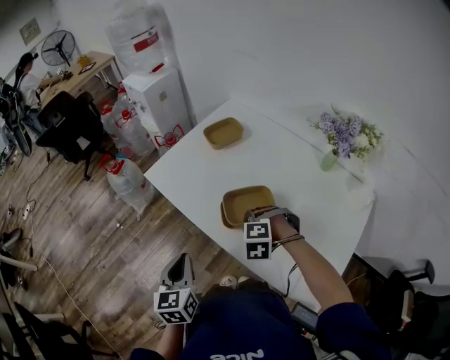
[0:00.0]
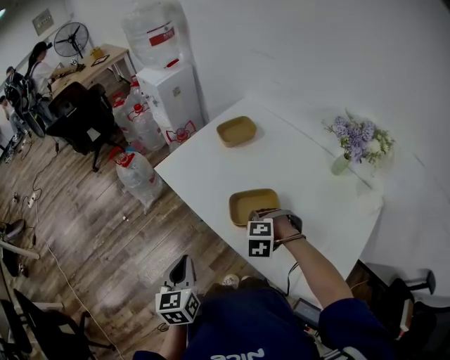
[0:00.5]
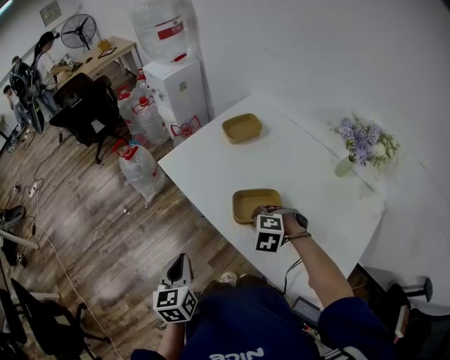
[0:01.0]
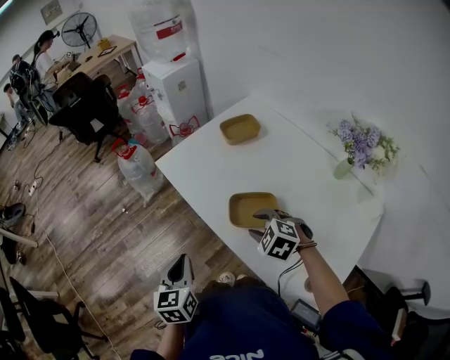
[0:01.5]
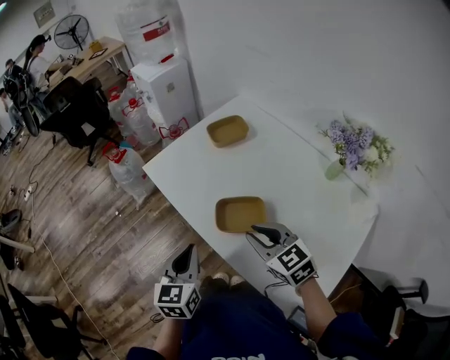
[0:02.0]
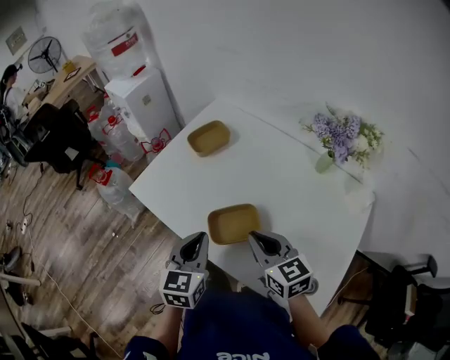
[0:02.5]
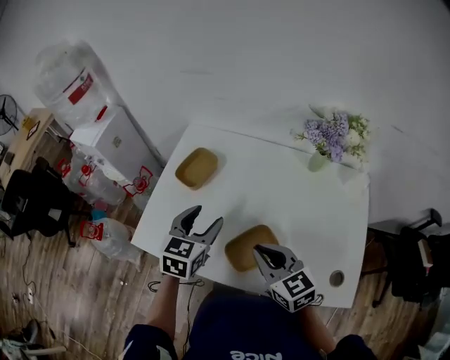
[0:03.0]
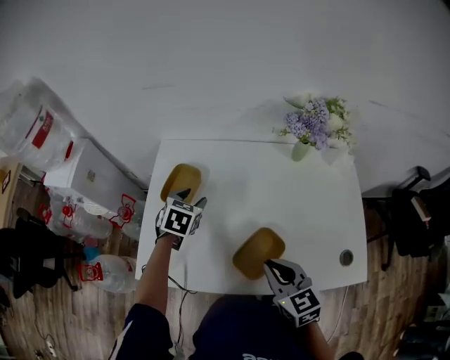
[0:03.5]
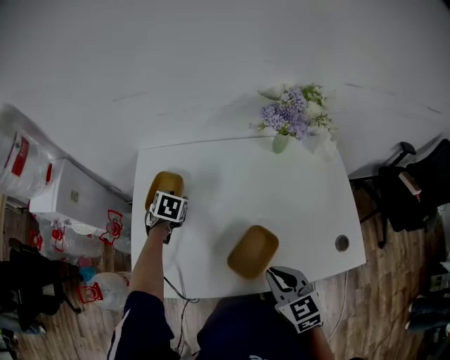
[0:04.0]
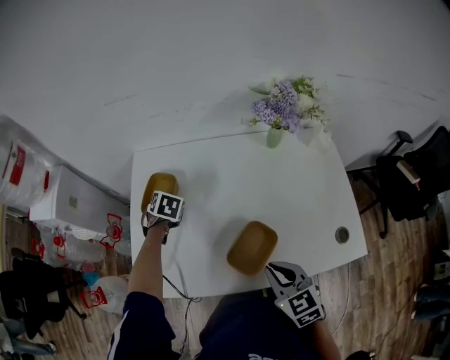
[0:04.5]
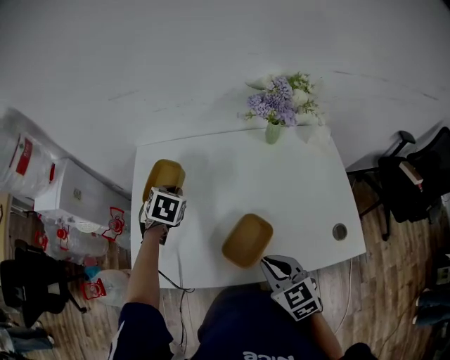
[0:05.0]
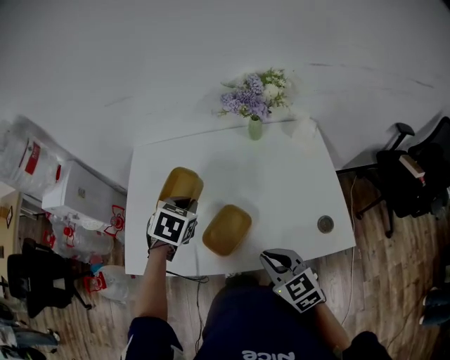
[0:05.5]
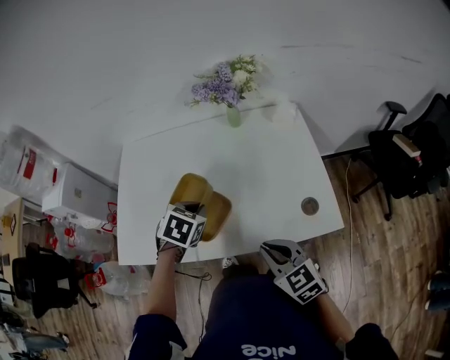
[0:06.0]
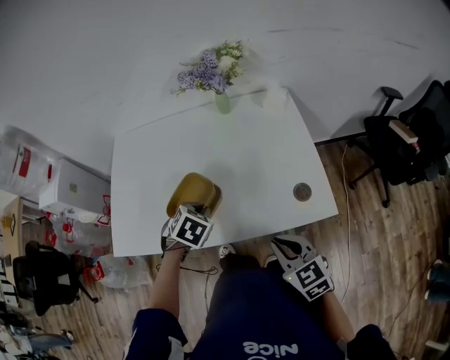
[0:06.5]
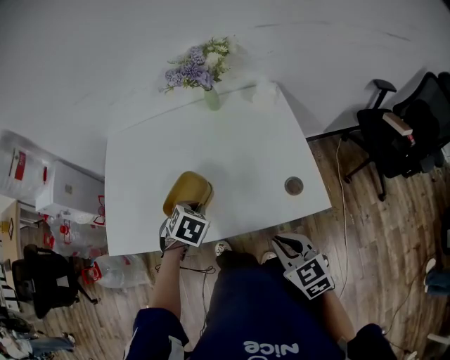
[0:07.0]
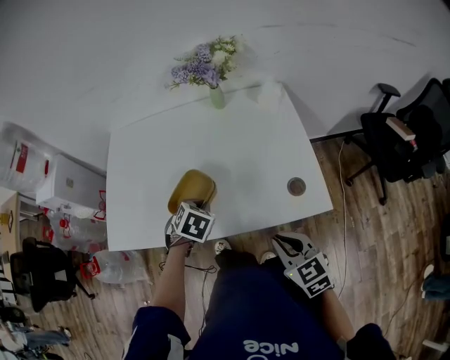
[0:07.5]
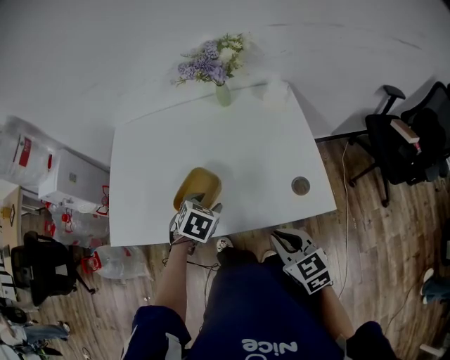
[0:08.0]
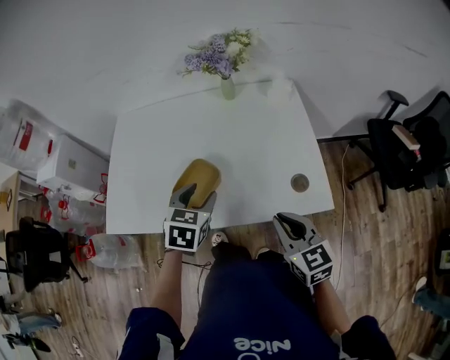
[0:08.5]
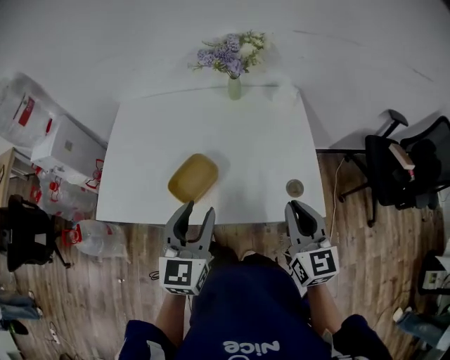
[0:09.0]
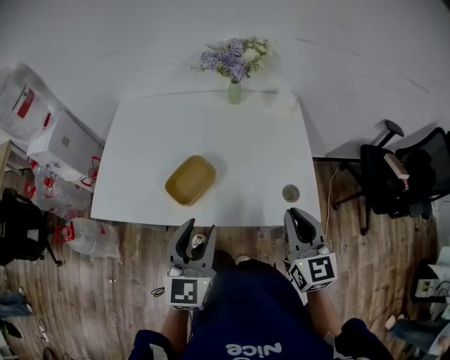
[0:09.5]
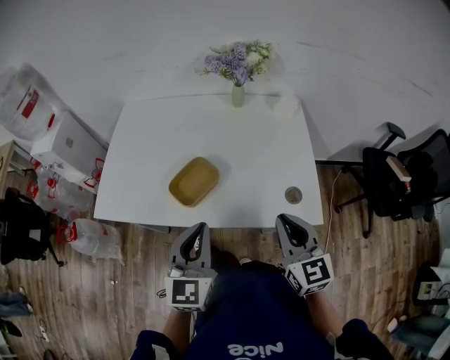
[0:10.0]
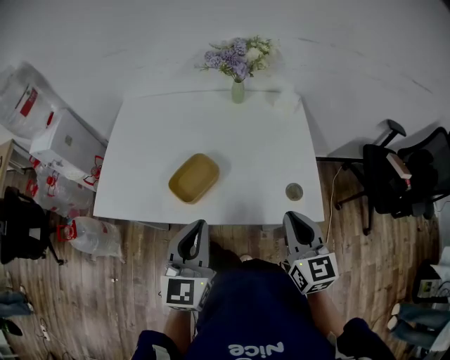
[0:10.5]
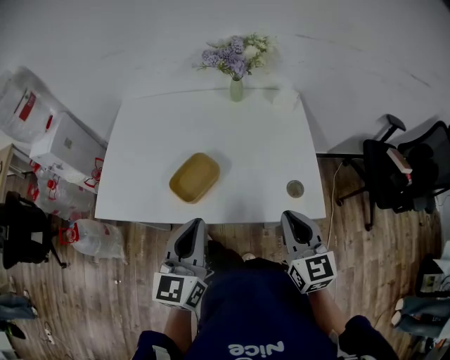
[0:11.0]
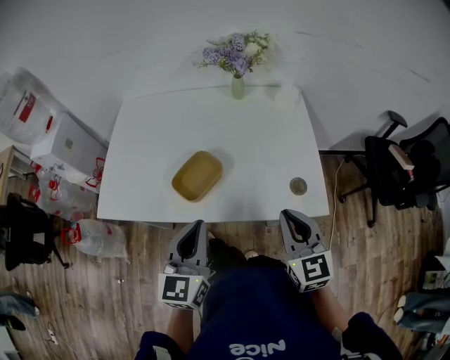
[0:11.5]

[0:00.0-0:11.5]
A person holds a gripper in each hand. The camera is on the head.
0:00.0 to 0:02.0: The right gripper goes approximately 10 cm upward, and angles its fingers upward, by roughly 40 degrees. The left gripper goes some 5 cm to the right.
0:02.0 to 0:04.0: The left gripper changes place by approximately 50 cm, angles its fingers downward, by about 40 degrees, and opens its fingers. The right gripper moves about 5 cm, and rotates roughly 60 degrees.
0:04.0 to 0:06.0: The left gripper moves backward and to the right, some 35 cm, and closes up. Meanwhile the right gripper shifts approximately 20 cm to the right and backward.
0:06.0 to 0:07.5: The right gripper goes about 10 cm to the right and backward, while the left gripper goes roughly 5 cm downward.
0:07.5 to 0:09.5: The left gripper moves upward and backward, about 20 cm, points its fingers approximately 50 degrees further upward, and opens its fingers. The right gripper moves upward and to the right, about 10 cm, and rotates some 30 degrees.
0:09.5 to 0:11.5: The left gripper closes up.

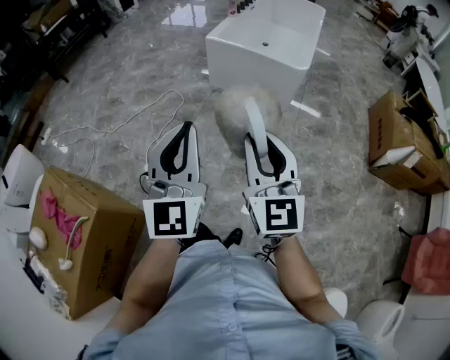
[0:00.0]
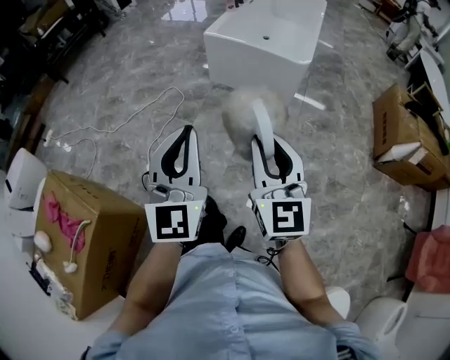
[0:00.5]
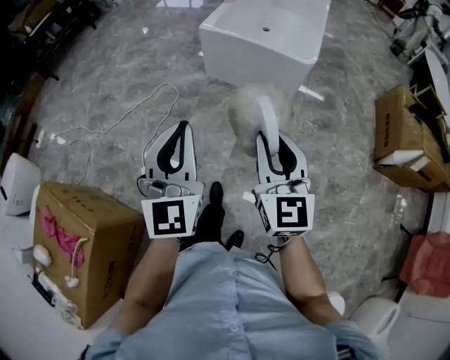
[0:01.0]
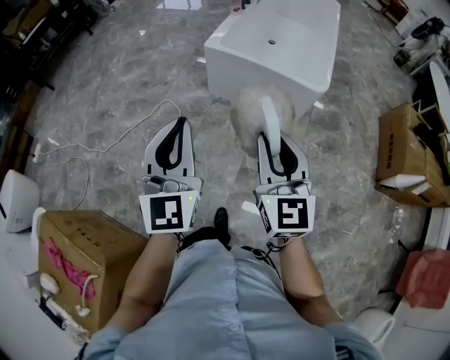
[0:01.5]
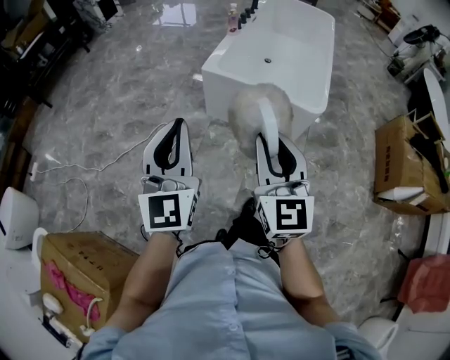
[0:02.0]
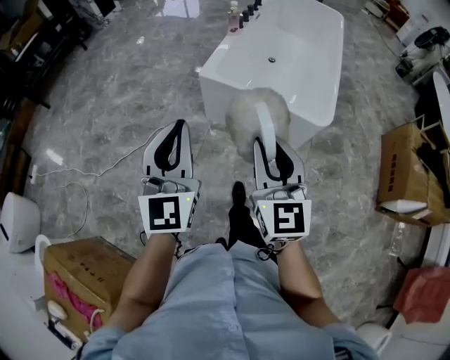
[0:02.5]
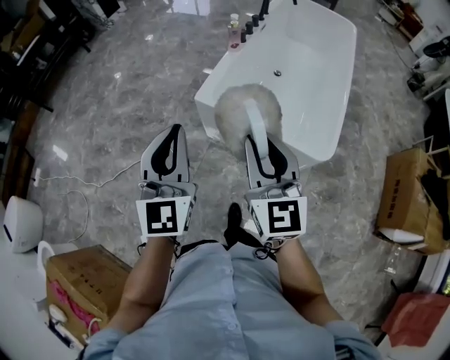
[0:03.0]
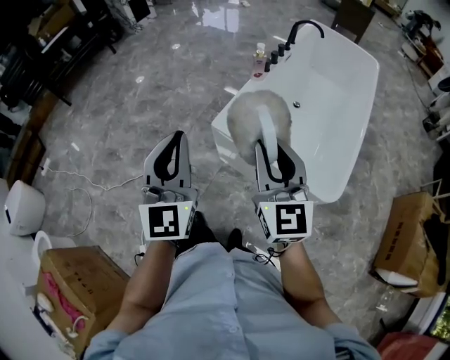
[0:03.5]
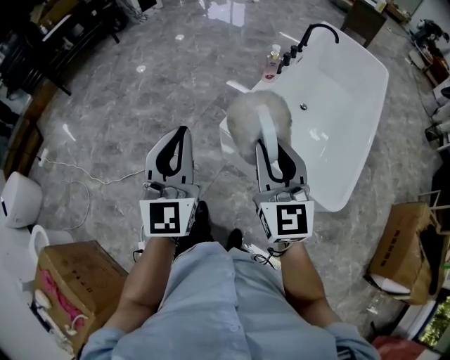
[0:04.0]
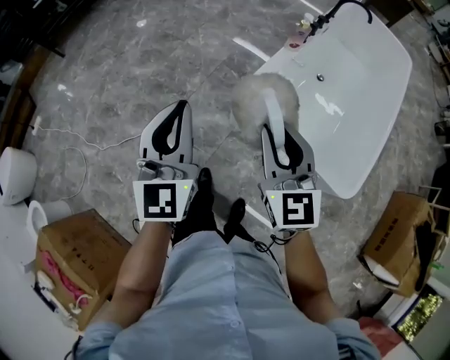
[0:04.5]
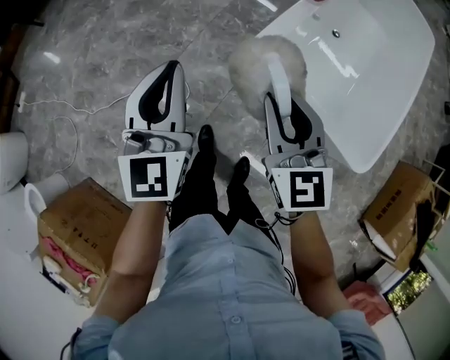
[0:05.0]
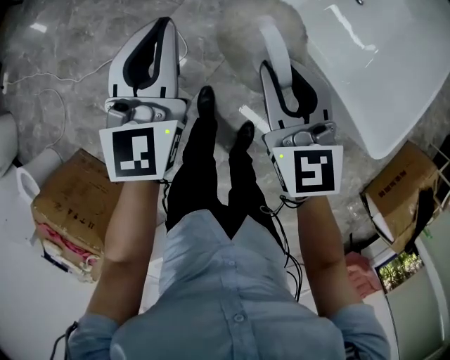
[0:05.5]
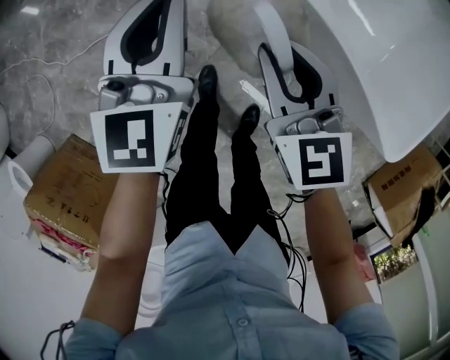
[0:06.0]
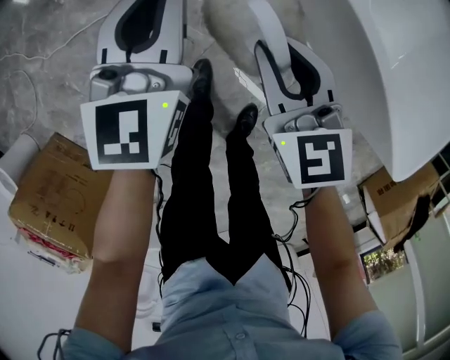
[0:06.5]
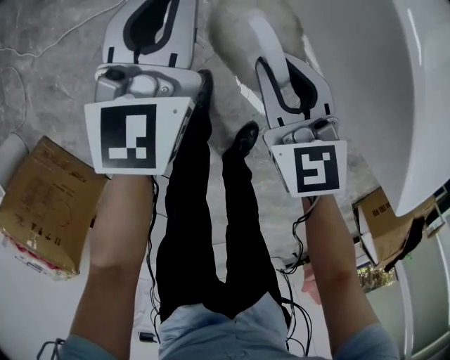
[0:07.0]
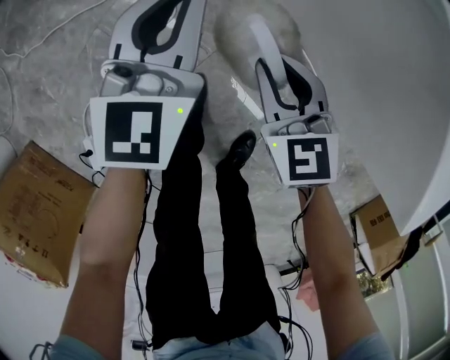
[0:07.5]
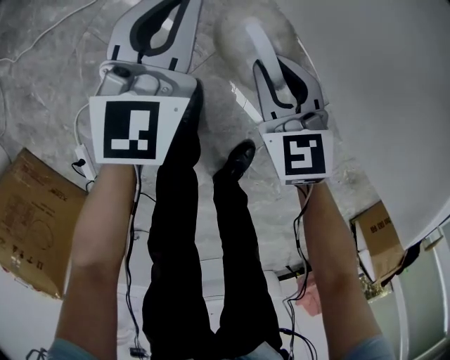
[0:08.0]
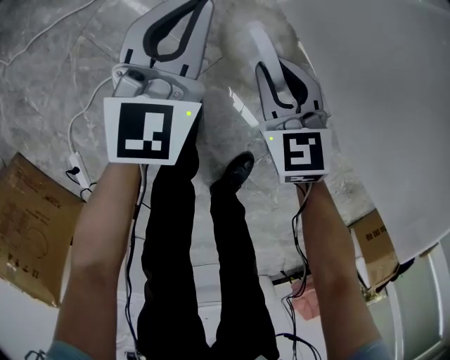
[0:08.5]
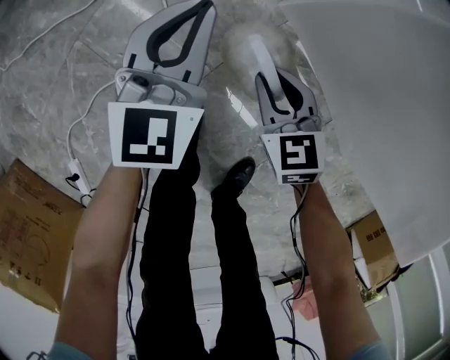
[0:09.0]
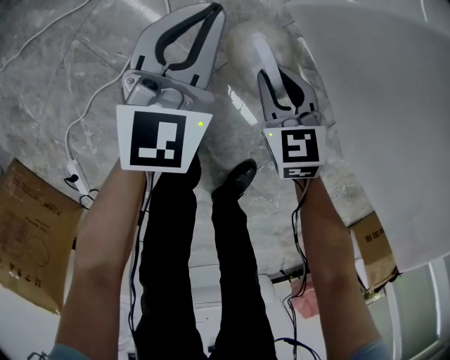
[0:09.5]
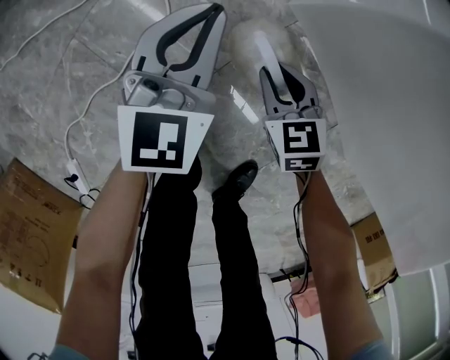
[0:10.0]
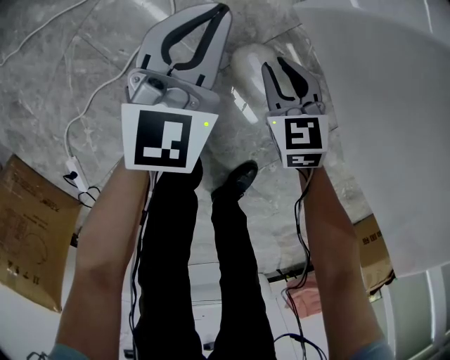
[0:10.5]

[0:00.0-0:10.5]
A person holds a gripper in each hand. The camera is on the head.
0:00.0 to 0:02.0: The pair of grippers is taken forward, some 40 cm.
0:02.0 to 0:04.0: The two grippers go about 40 cm forward.
0:04.0 to 0:06.5: The two grippers go about 50 cm downward. The right gripper turns by roughly 30 degrees. Meanwhile the left gripper rotates approximately 30 degrees.
0:06.5 to 0:08.5: Both grippers travel together downward, about 35 cm.
0:08.5 to 0:10.5: The two grippers go about 10 cm downward.

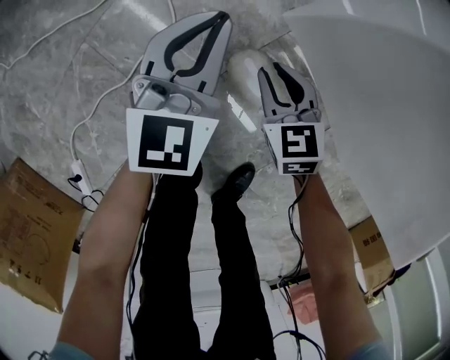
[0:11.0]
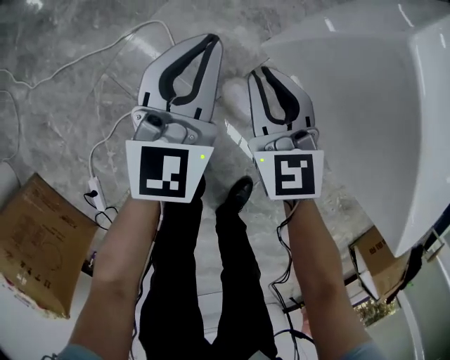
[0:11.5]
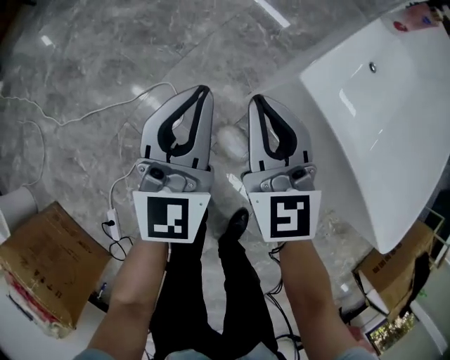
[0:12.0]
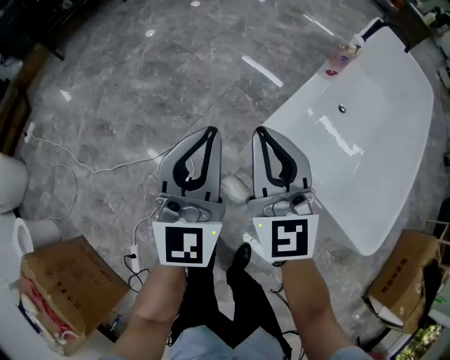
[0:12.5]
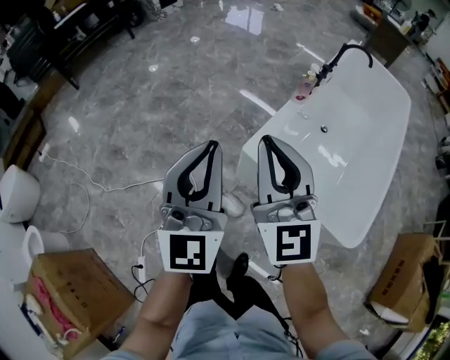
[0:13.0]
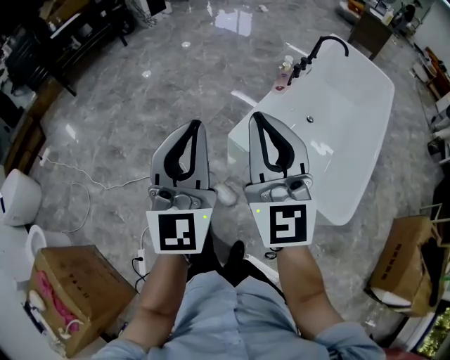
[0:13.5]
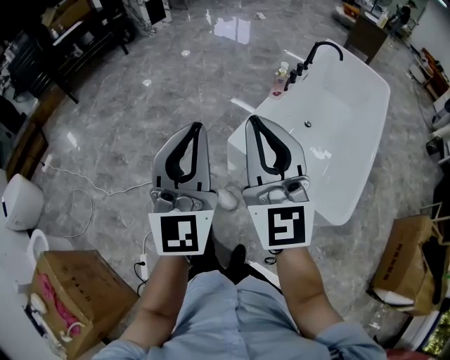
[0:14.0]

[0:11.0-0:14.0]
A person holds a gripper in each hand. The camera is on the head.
0:11.0 to 0:12.5: The grippers both shift upward by roughly 70 cm. The right gripper angles its fingers upward, by approximately 50 degrees, and closes; the left gripper turns by approximately 30 degrees.
0:12.5 to 0:14.0: Both grippers travel together upward and backward, approximately 35 cm.

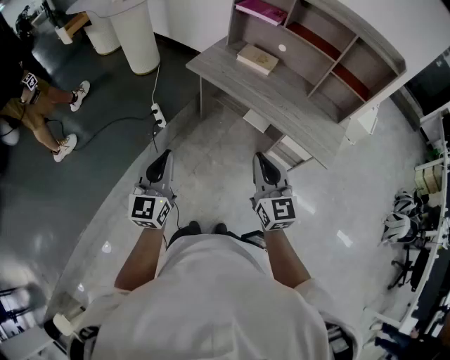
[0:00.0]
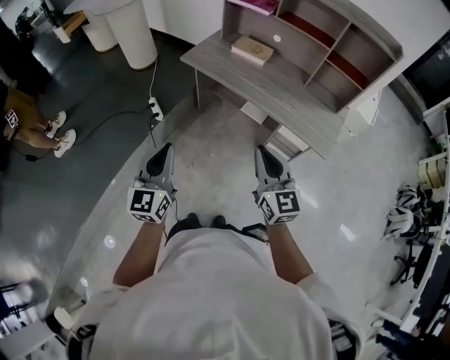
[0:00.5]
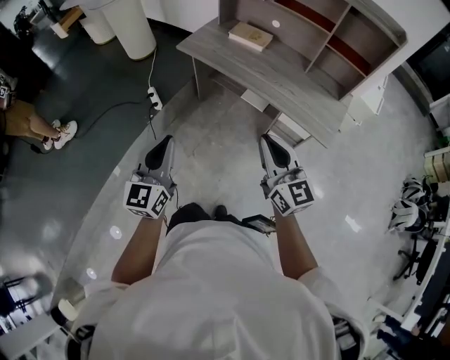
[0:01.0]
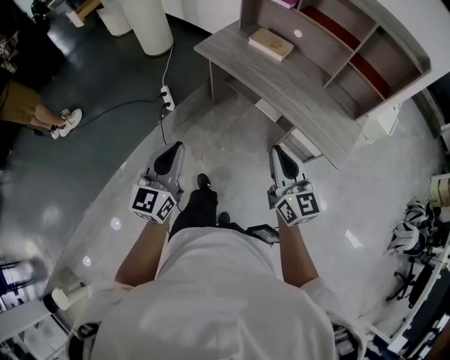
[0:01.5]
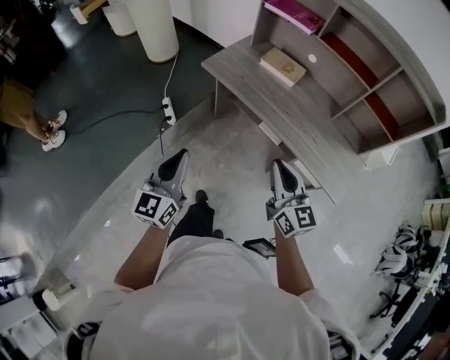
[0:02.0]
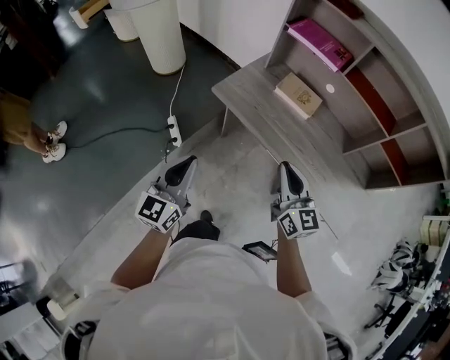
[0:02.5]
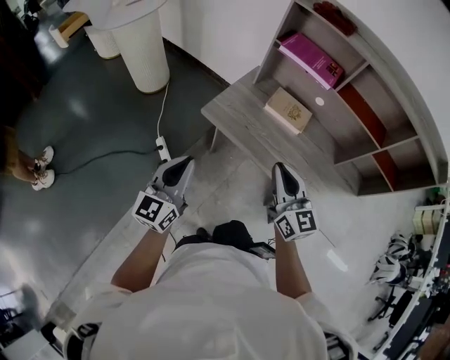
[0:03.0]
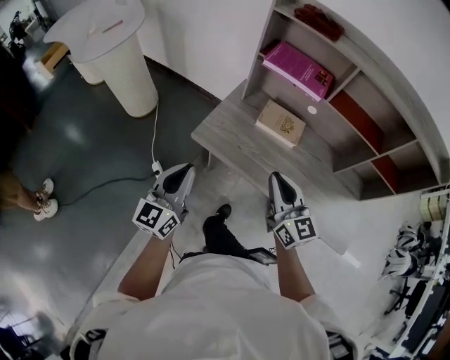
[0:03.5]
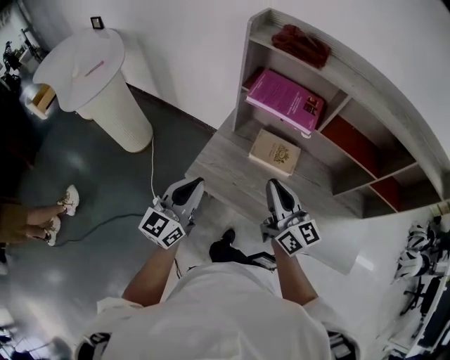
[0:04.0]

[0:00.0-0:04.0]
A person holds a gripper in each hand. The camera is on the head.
0:00.0 to 0:02.0: The right gripper moves forward and to the right, some 15 cm, while the left gripper moves forward, roughly 10 cm.
0:02.0 to 0:04.0: The grippers both shift forward by roughly 40 cm. The left gripper swivels approximately 20 degrees.
